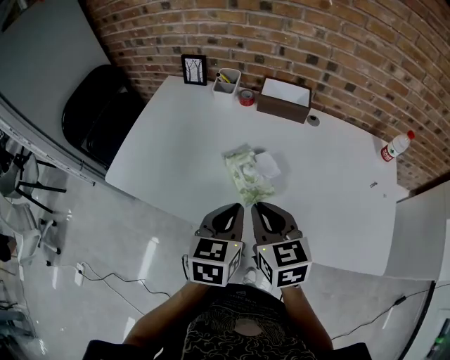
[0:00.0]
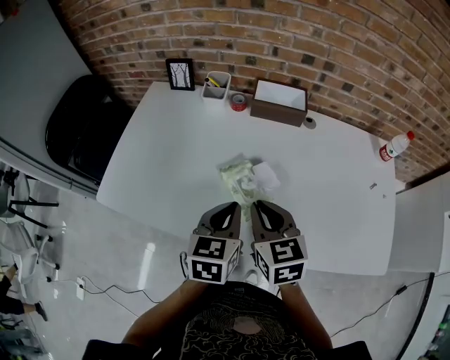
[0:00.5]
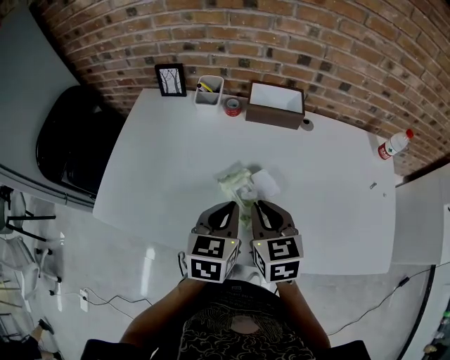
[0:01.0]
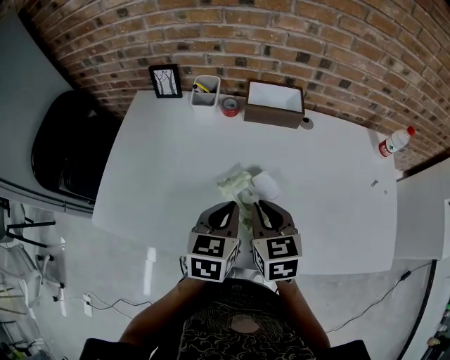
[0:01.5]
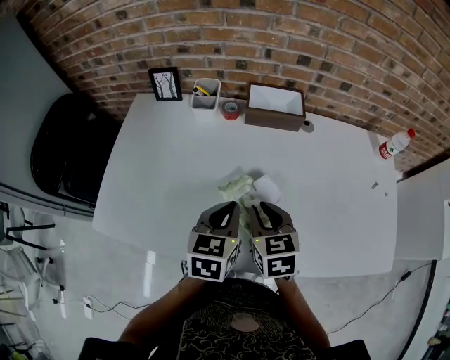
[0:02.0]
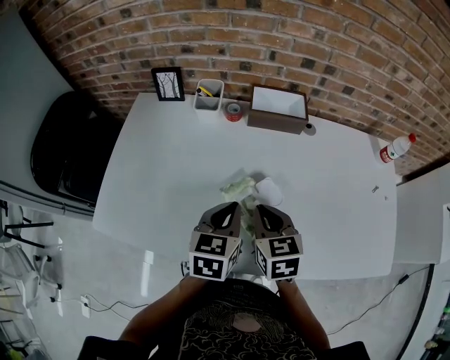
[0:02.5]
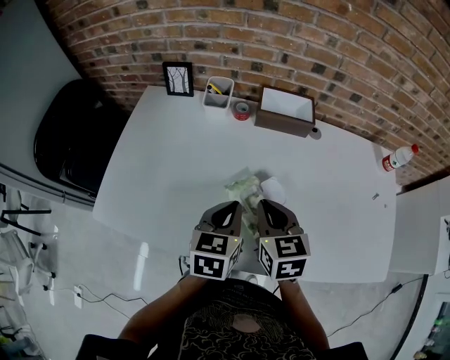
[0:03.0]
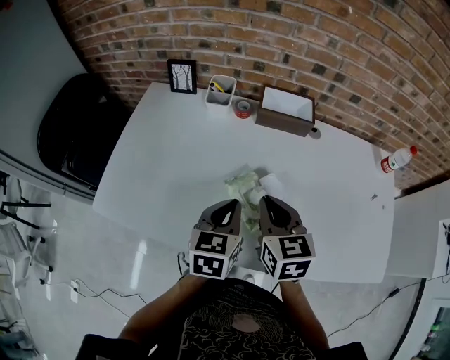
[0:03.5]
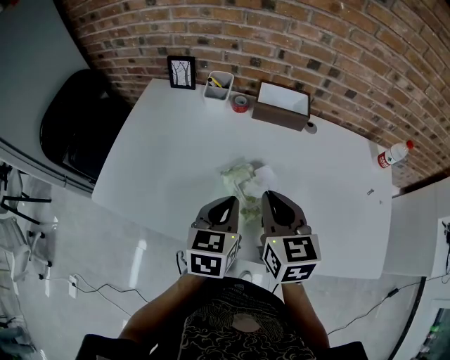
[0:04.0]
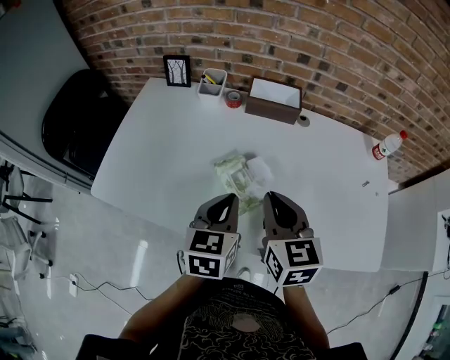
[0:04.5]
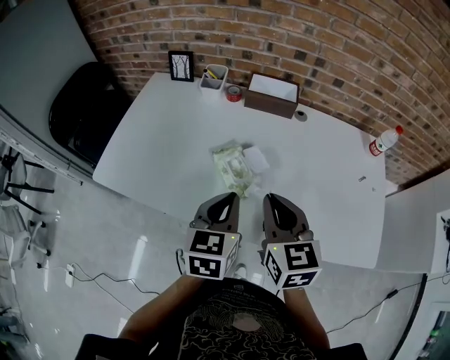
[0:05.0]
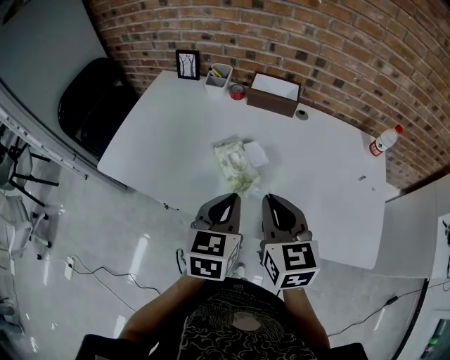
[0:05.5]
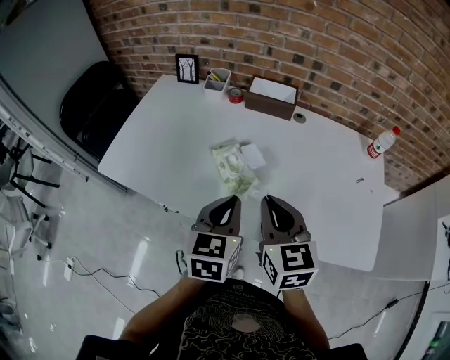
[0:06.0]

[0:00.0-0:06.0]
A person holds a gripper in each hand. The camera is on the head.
0.0 to 2.0 s: The left gripper is displaced forward by about 10 cm. The right gripper travels forward and downward by approximately 15 cm.
2.0 to 4.0 s: The right gripper shifts approximately 10 cm upward.
4.0 to 6.0 s: The grippers both shift backward and to the right by about 15 cm.

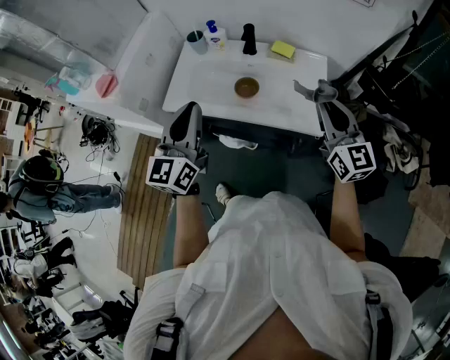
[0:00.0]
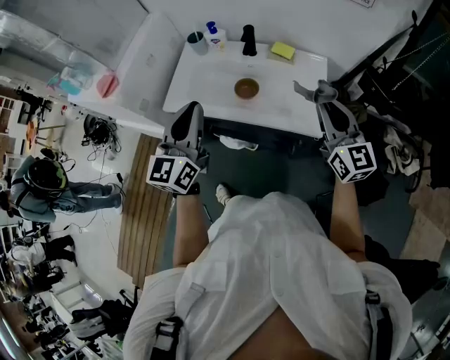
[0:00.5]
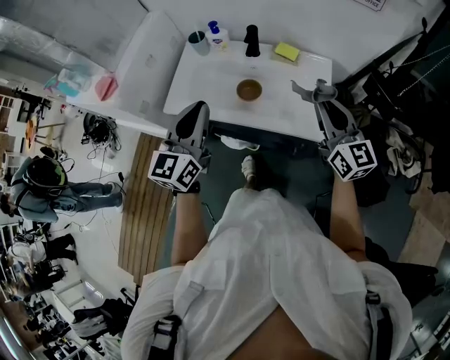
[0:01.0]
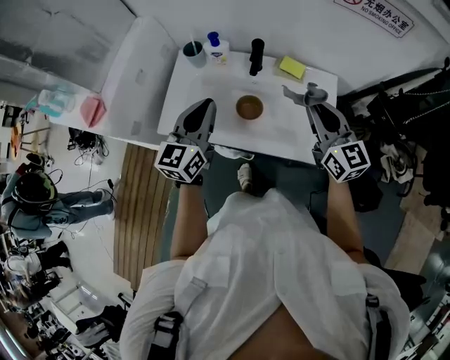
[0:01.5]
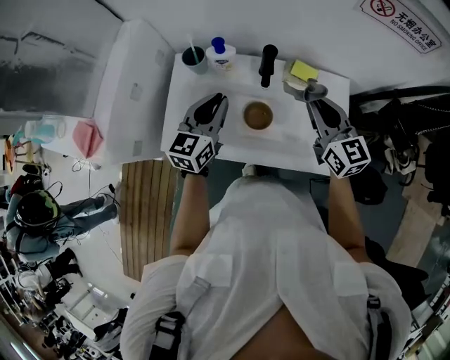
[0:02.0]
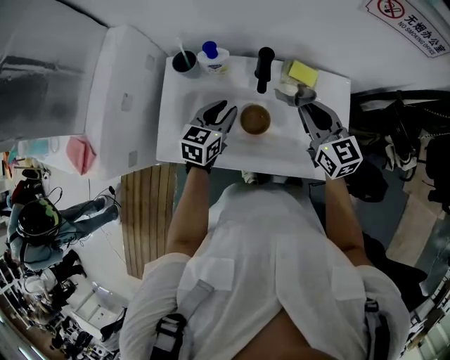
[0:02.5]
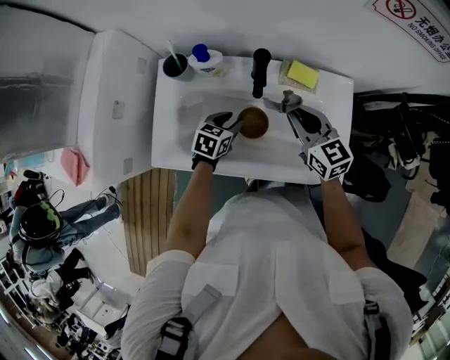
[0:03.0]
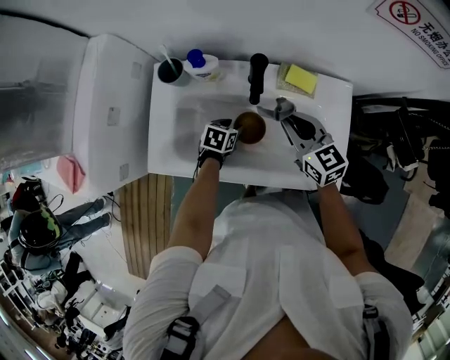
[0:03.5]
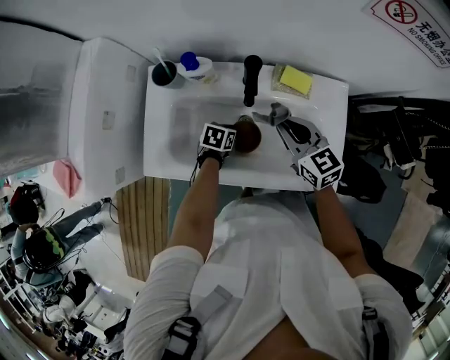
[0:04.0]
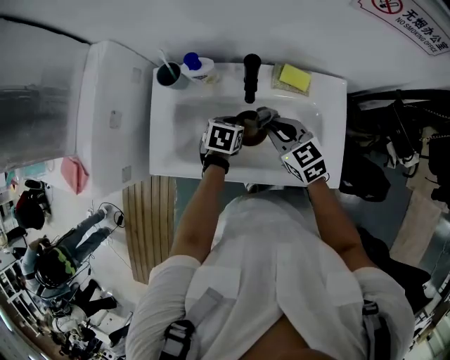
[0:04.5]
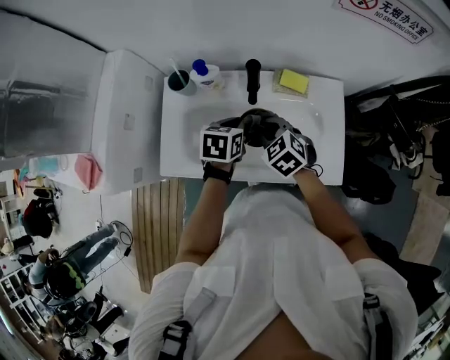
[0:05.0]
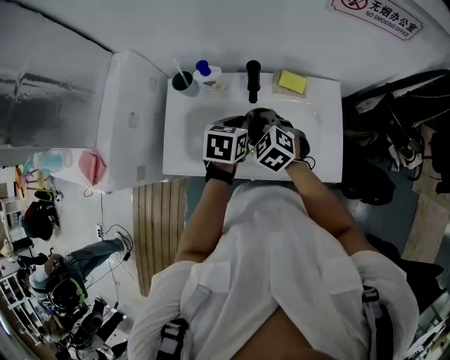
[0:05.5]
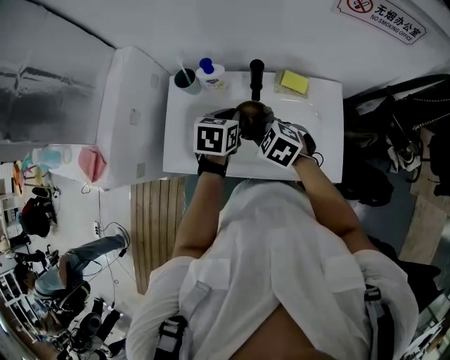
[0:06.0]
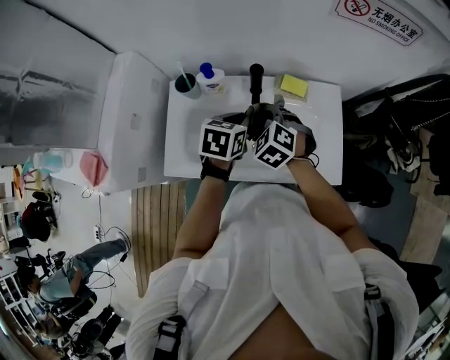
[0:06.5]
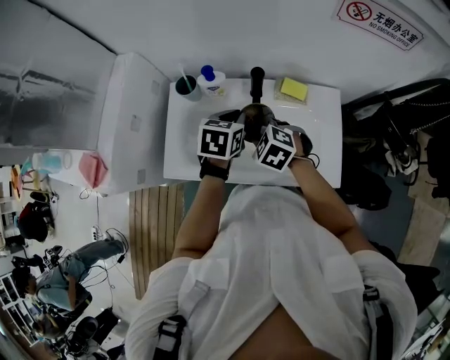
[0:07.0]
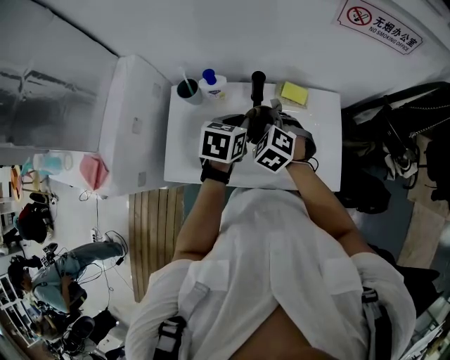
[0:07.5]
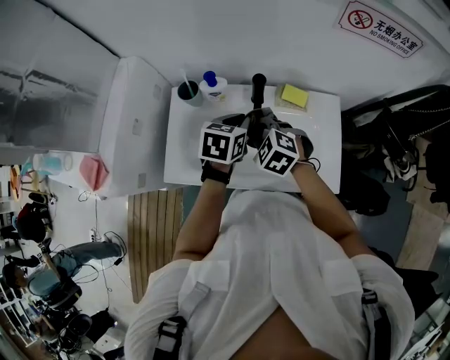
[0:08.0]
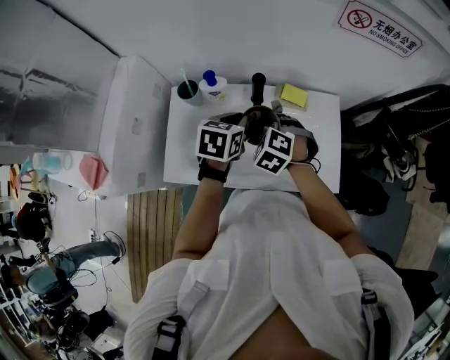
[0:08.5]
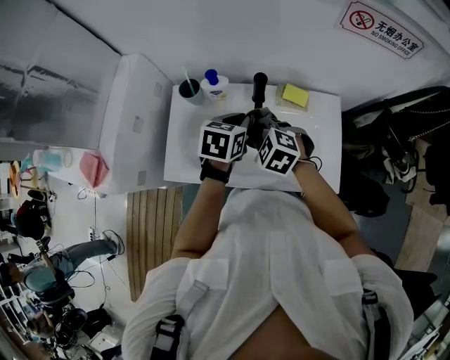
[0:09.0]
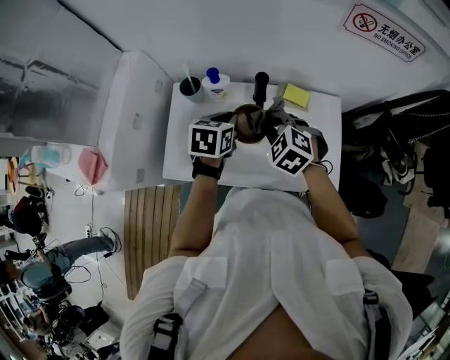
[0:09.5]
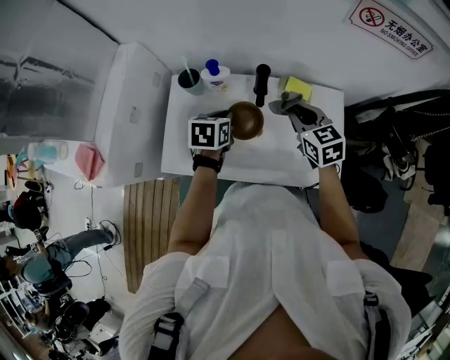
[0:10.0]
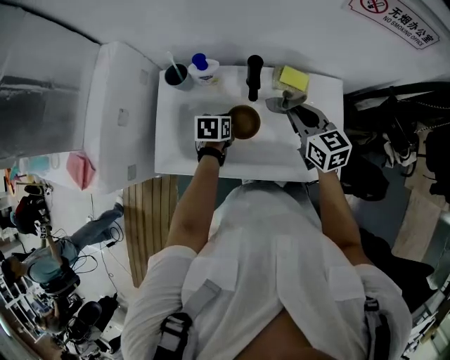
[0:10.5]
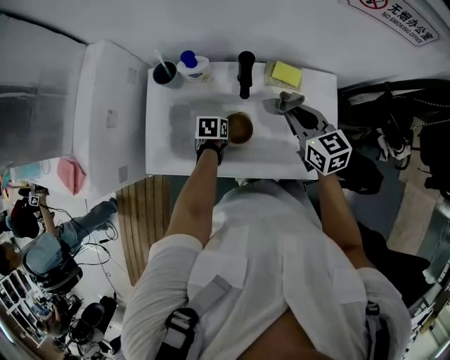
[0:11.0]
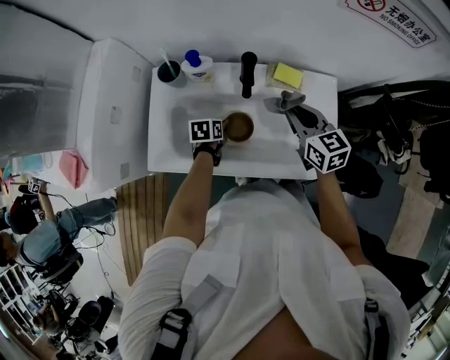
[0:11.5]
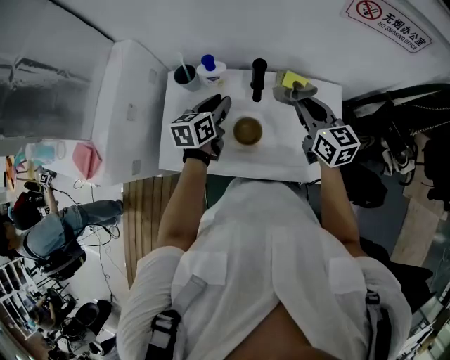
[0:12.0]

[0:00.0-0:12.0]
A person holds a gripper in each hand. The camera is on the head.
0.0 to 2.0 s: The right gripper moves forward, roughly 20 cm. The left gripper moves forward and downward, approximately 30 cm, and swivels roughly 20 degrees.
2.0 to 4.0 s: The right gripper shifts roughly 15 cm downward, while the left gripper travels downward by approximately 30 cm, angles its fingers downward, by about 50 degrees, and opens, then closes again.
4.0 to 6.0 s: The right gripper moves to the left and backward, approximately 10 cm, and tips its fingers downward by about 30 degrees. The left gripper travels upward by some 25 cm, and rotates about 20 degrees.
8.0 to 10.0 s: The left gripper travels downward and to the left by roughly 10 cm; the right gripper goes some 10 cm to the right, and turns by some 40 degrees.
10.0 to 12.0 s: The left gripper reaches approximately 20 cm downward, then returns, swivels some 20 degrees, and opens.

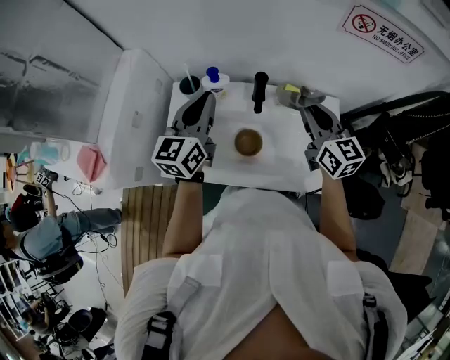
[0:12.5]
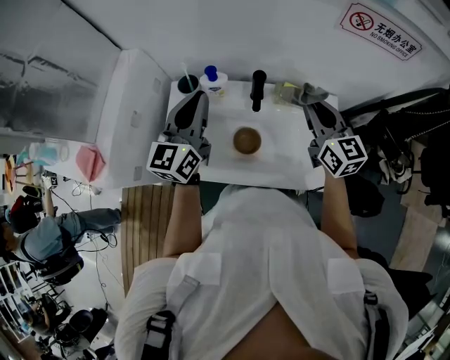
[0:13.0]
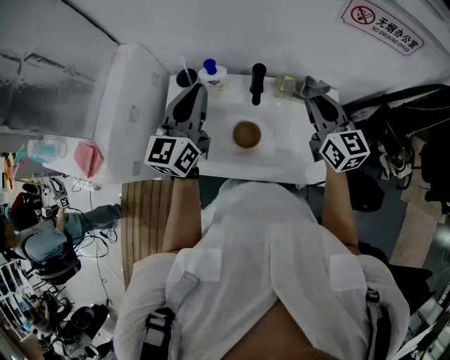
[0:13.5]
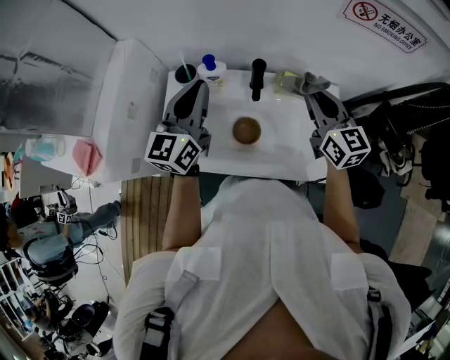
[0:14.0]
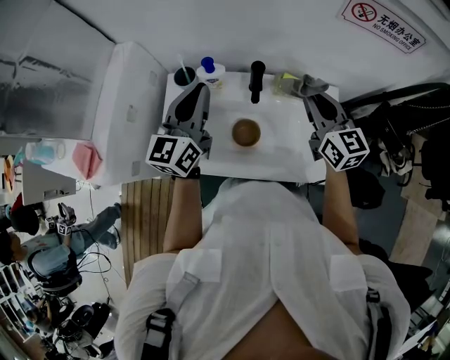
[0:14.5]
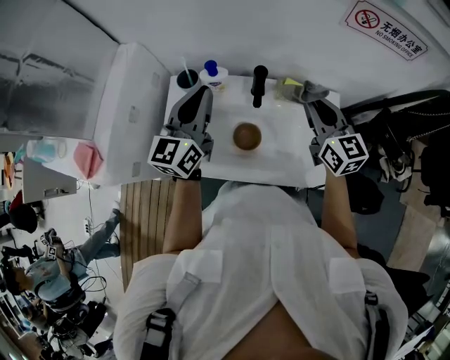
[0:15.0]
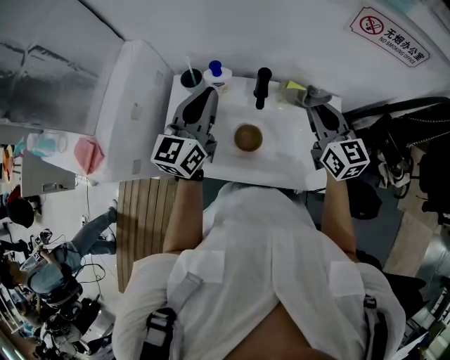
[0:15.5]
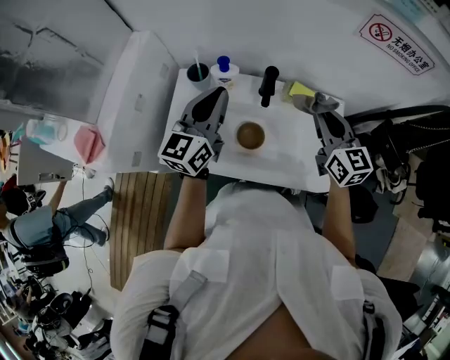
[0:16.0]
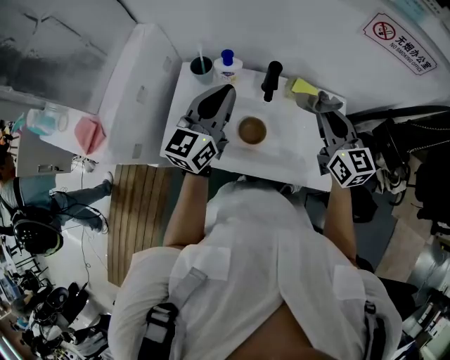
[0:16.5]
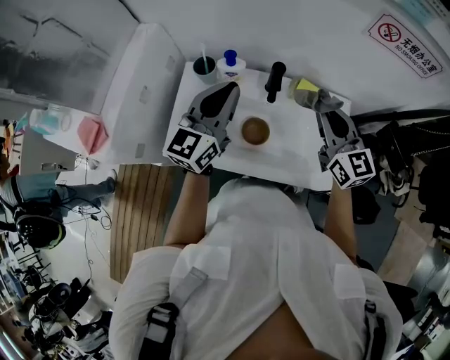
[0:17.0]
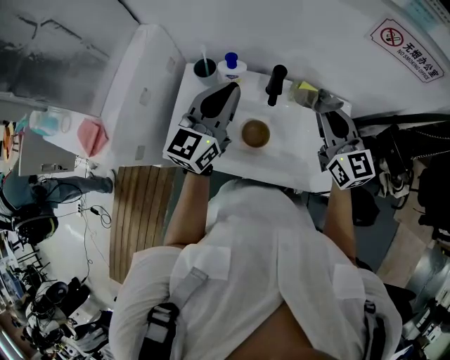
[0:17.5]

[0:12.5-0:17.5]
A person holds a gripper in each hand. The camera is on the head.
12.5 to 17.5 s: The grippers stay close to where they were, moving slightly.

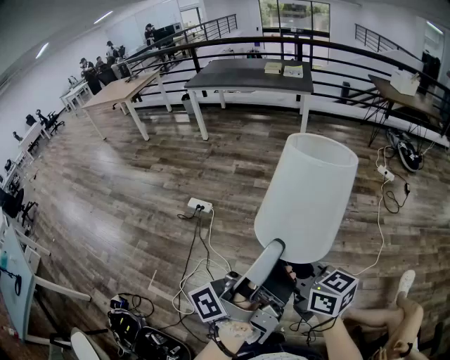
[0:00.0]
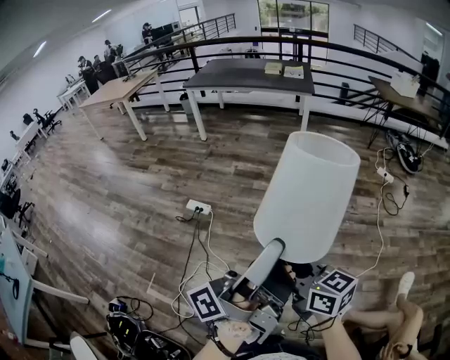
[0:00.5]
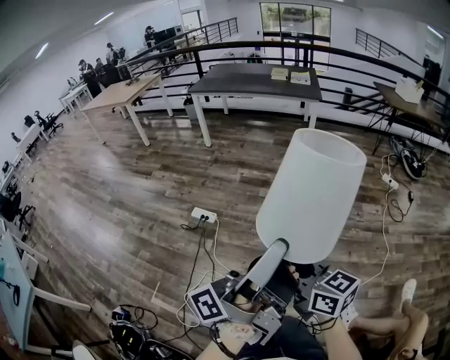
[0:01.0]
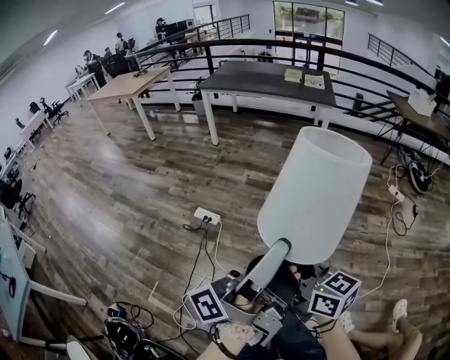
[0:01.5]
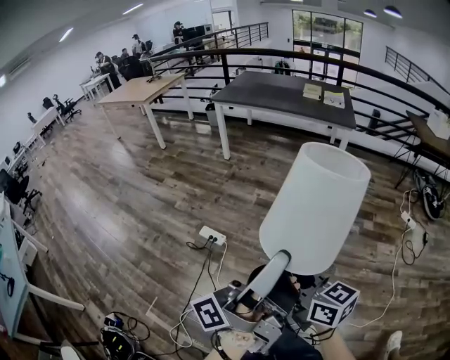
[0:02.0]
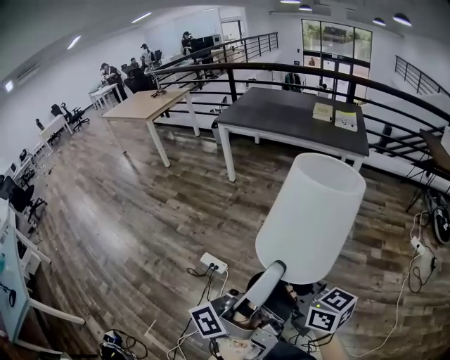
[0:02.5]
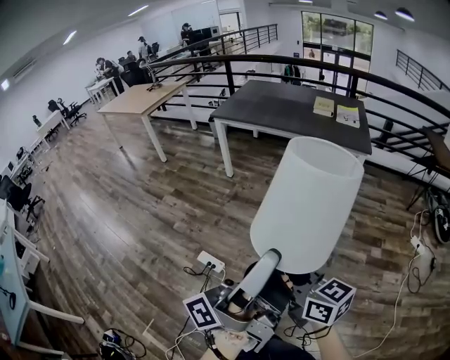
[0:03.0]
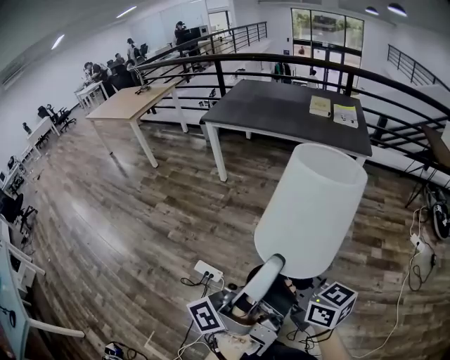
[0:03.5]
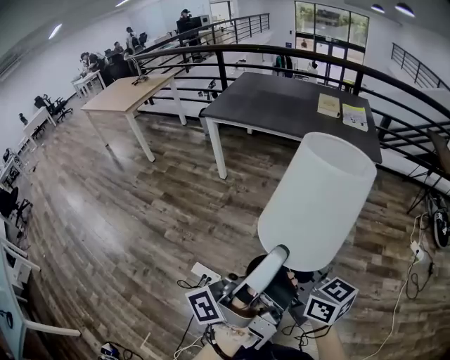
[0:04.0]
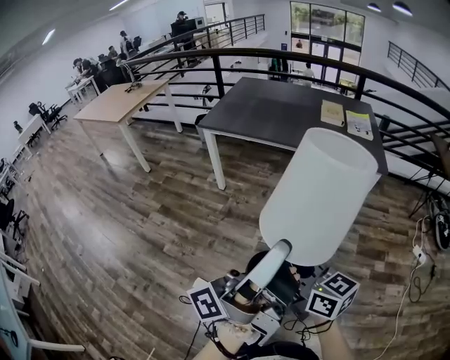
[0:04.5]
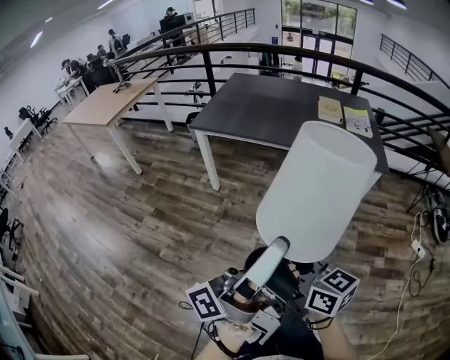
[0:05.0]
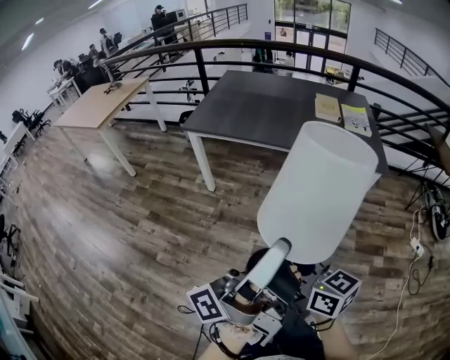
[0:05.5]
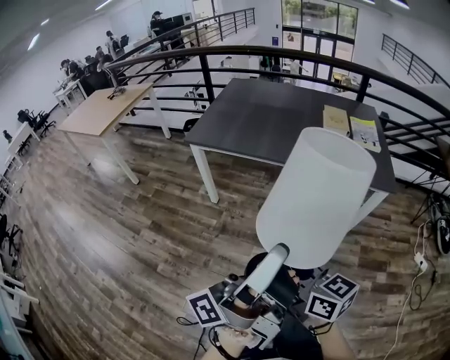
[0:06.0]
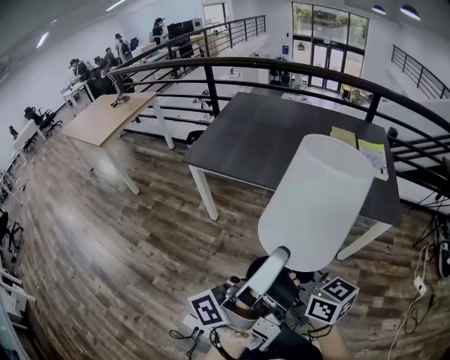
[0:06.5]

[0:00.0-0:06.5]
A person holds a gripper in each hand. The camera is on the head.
0.0 to 2.0 s: The right gripper moves about 30 cm.
2.0 to 4.5 s: The right gripper changes place by approximately 50 cm.
4.5 to 6.5 s: The right gripper moves some 30 cm.
